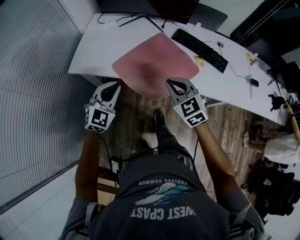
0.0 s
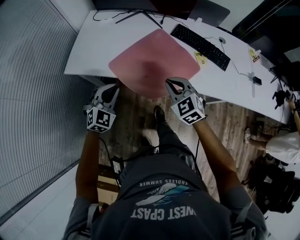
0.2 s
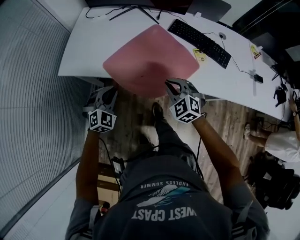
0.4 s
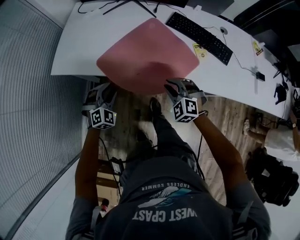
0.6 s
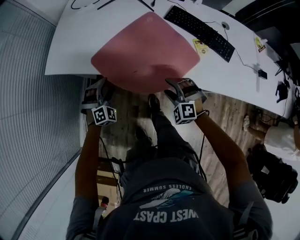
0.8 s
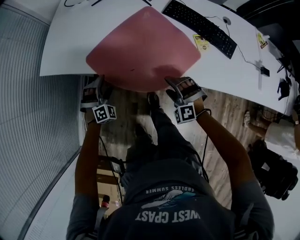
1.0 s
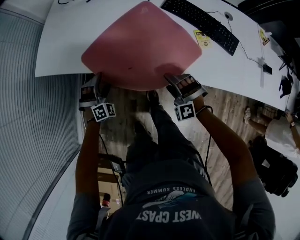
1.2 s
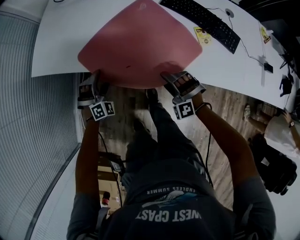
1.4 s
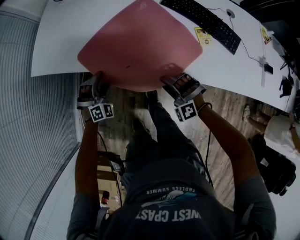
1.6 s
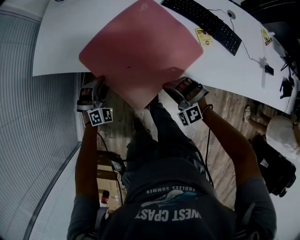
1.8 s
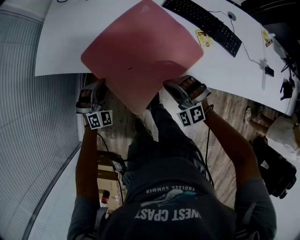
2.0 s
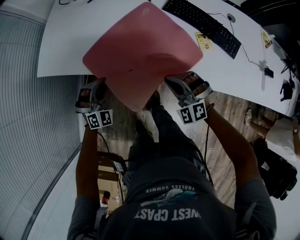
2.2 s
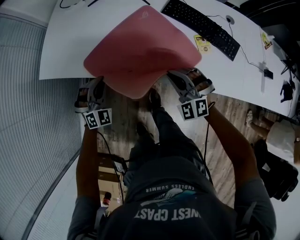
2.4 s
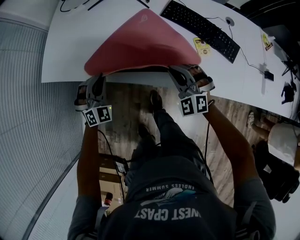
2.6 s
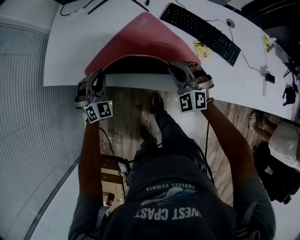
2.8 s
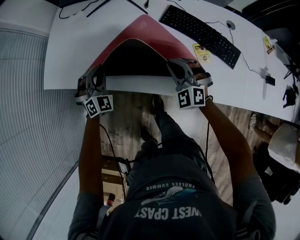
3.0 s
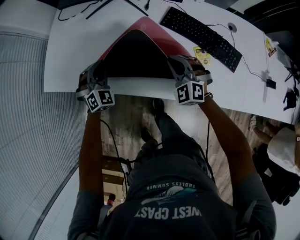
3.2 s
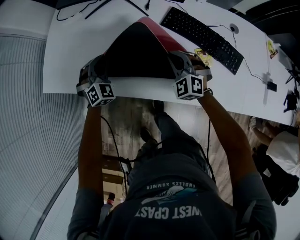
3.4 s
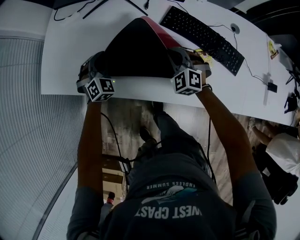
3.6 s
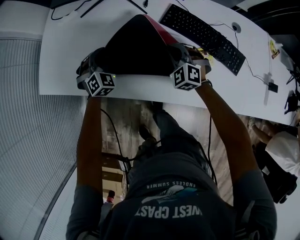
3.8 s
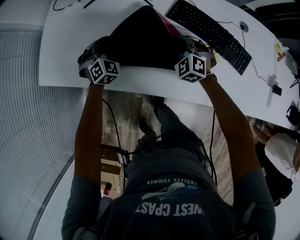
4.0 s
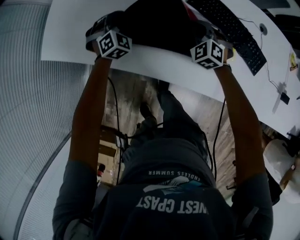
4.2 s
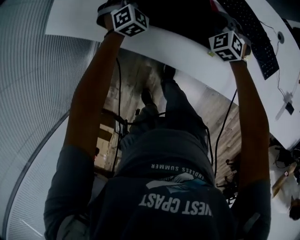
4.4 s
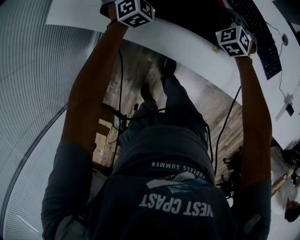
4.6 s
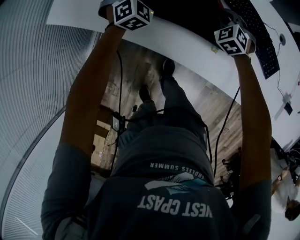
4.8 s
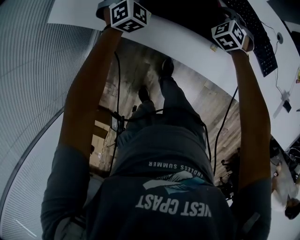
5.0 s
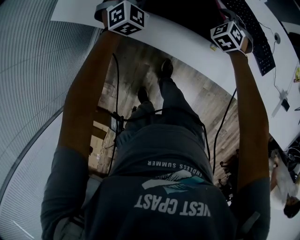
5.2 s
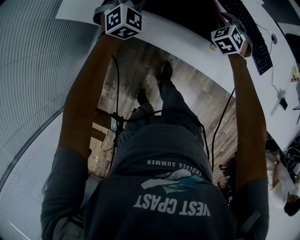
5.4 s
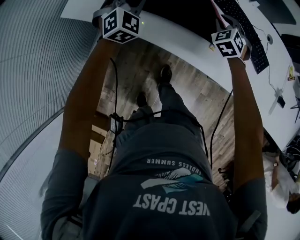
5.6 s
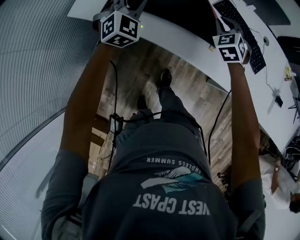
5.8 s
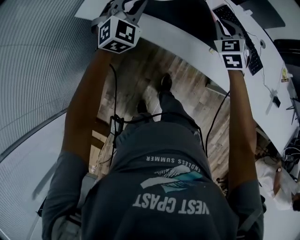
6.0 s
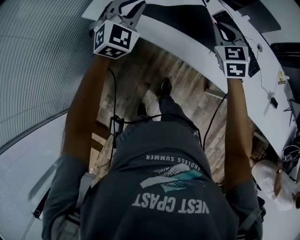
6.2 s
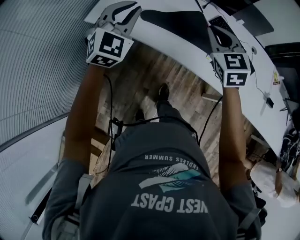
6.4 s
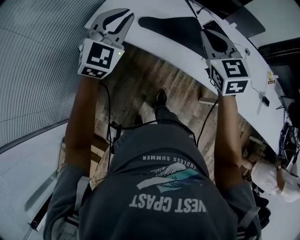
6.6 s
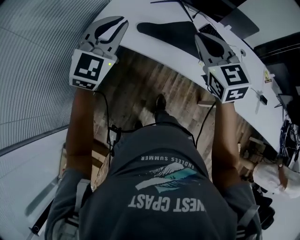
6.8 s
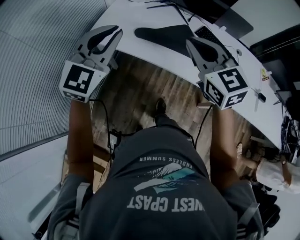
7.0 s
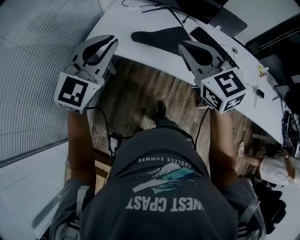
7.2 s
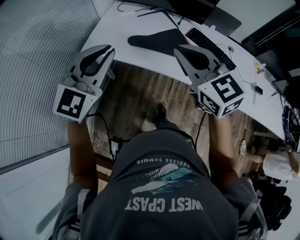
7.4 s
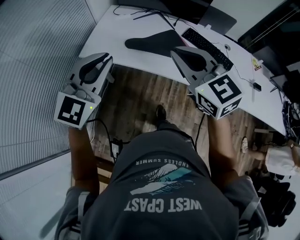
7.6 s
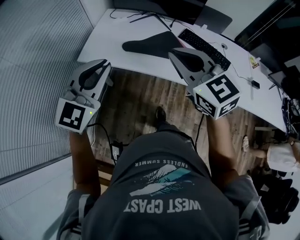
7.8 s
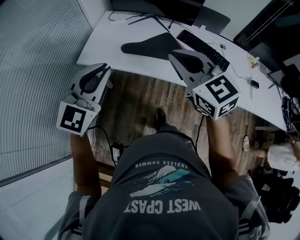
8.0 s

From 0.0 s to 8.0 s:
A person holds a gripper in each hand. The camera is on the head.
From 0.0 s to 1.6 s: Both grippers move downward, some 30 cm. The left gripper swivels approximately 40 degrees, and opens its fingers; the right gripper rolls counterclockwise, seen from behind, by roughly 60 degrees, and opens its fingers.
From 1.6 s to 3.2 s: The grippers both shift forward and upward by approximately 20 cm. The left gripper closes its fingers, while the right gripper turns by roughly 40 degrees, and closes up.
From 3.2 s to 4.8 s: The right gripper travels forward and downward by approximately 15 cm. The left gripper heads forward, covering about 10 cm.
From 4.8 s to 6.4 s: The two grippers go roughly 35 cm upward and backward. The left gripper rotates approximately 30 degrees. Meanwhile the right gripper turns by some 30 degrees.
From 6.4 s to 8.0 s: Both grippers travel together backward and upward, roughly 20 cm. The left gripper rotates some 20 degrees.

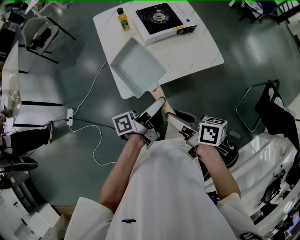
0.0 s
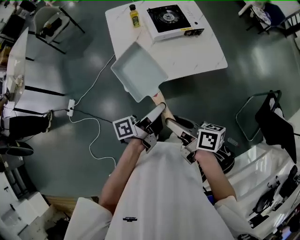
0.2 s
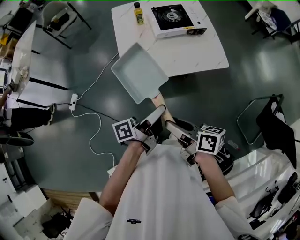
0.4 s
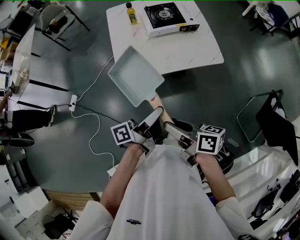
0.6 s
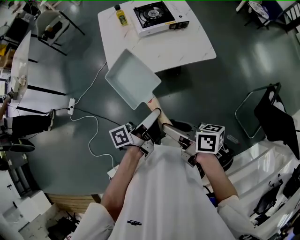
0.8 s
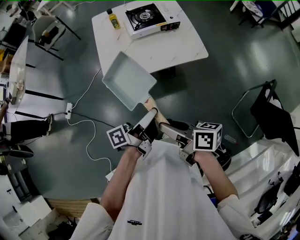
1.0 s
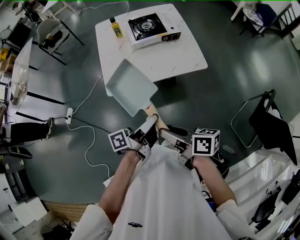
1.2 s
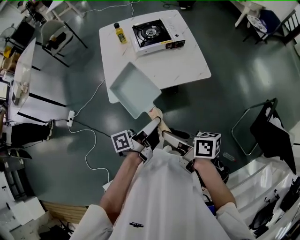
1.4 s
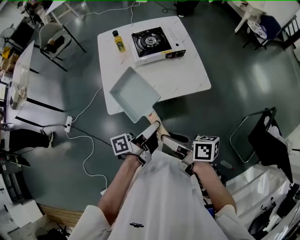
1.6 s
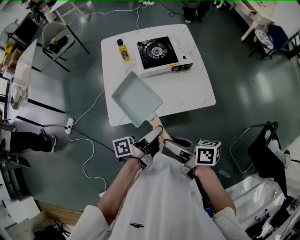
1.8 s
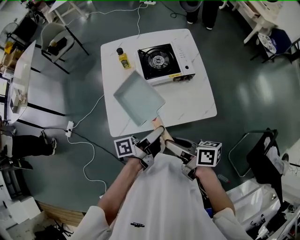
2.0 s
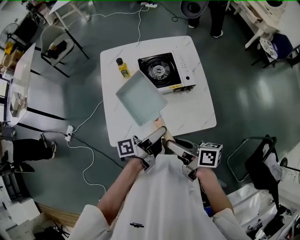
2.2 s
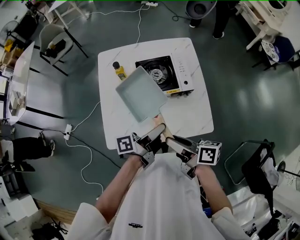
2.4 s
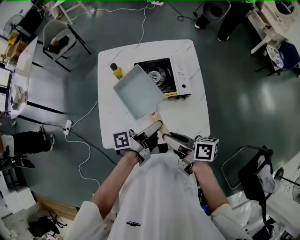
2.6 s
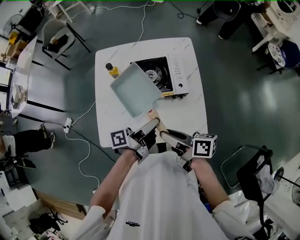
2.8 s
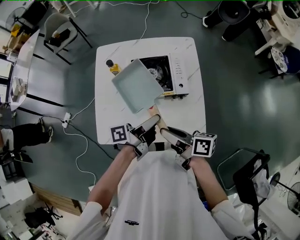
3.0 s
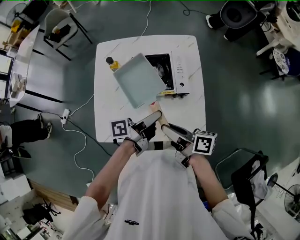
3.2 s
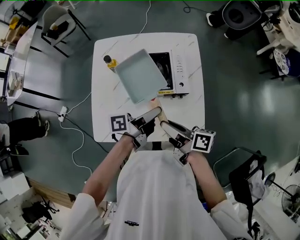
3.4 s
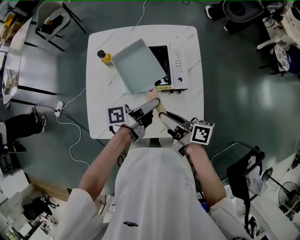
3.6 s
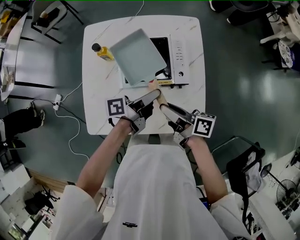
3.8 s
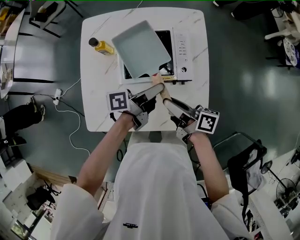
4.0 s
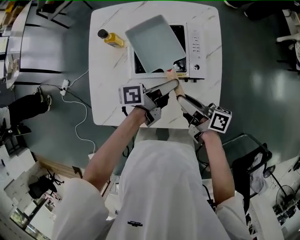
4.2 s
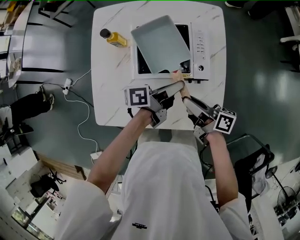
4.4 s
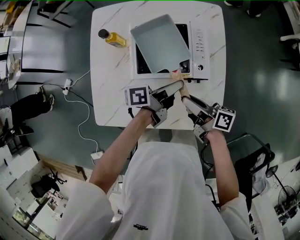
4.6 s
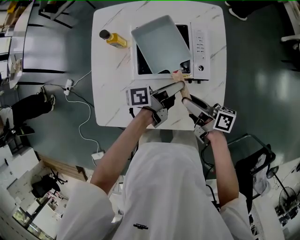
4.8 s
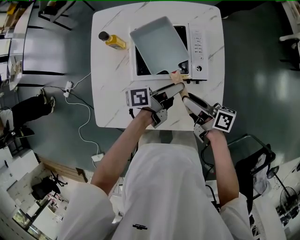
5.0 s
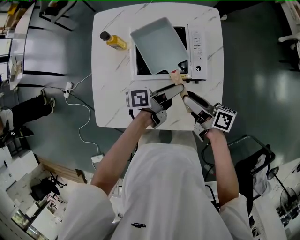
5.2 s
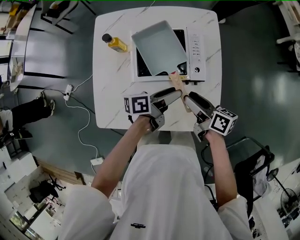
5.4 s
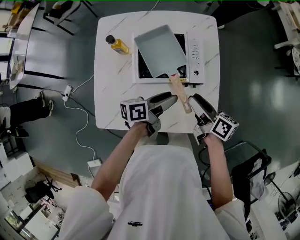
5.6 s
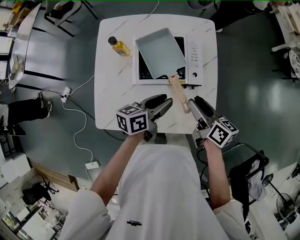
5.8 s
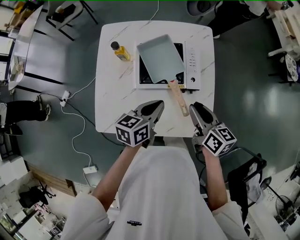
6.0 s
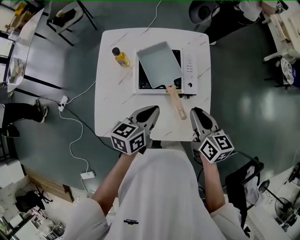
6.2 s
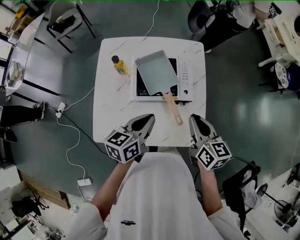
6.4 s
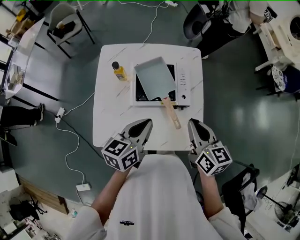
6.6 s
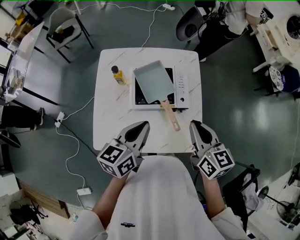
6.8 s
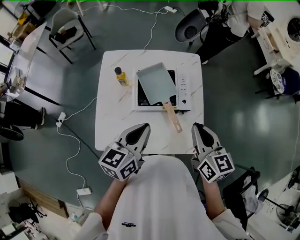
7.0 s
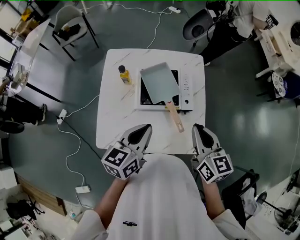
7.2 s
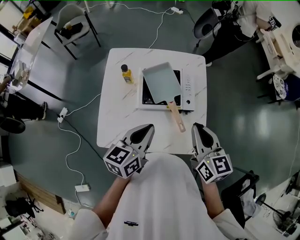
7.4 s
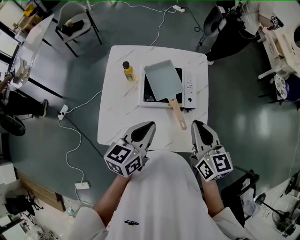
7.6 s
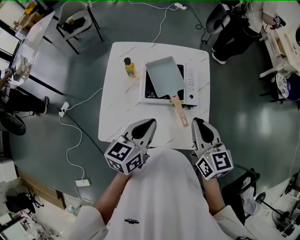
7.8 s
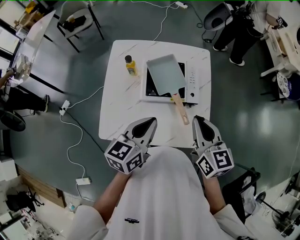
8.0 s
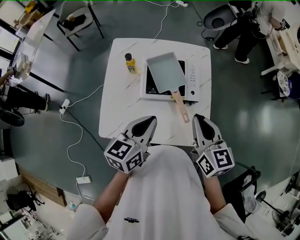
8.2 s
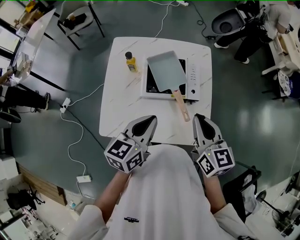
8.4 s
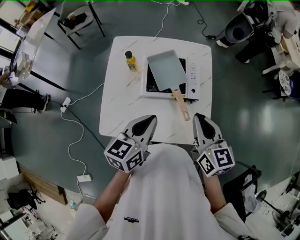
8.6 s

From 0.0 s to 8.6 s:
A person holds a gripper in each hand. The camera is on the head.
From 0.0 s to 1.4 s: The two grippers go about 15 cm to the right and backward.
From 1.4 s to 2.8 s: Both grippers travel together forward, roughly 35 cm.
From 2.8 s to 4.4 s: The left gripper is displaced forward and downward by some 15 cm, while the right gripper shifts some 15 cm downward and forward.
From 4.4 s to 5.8 s: The left gripper changes place by roughly 5 cm, rotates some 30 degrees, and opens, then closes once more. Meanwhile the right gripper moves to the right, about 5 cm, and rotates about 30 degrees.
From 5.8 s to 7.2 s: The left gripper heads upward and to the left, covering about 15 cm, turns by approximately 30 degrees, and closes up, while the right gripper shifts approximately 15 cm upward, swivels some 30 degrees, and closes its fingers.
From 7.2 s to 8.6 s: The grippers stay close to where they were, moving slightly.

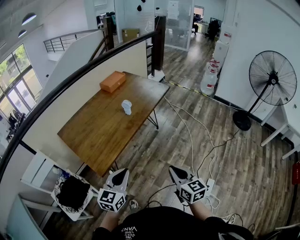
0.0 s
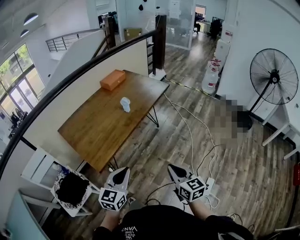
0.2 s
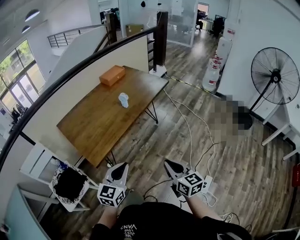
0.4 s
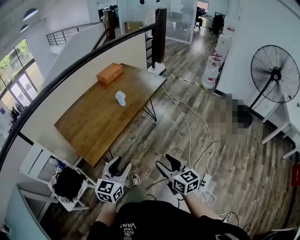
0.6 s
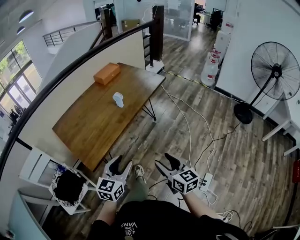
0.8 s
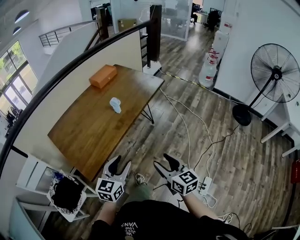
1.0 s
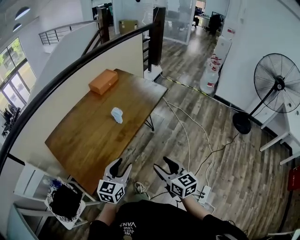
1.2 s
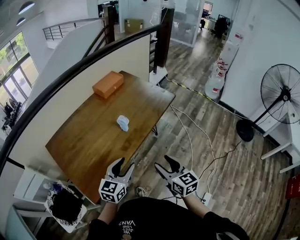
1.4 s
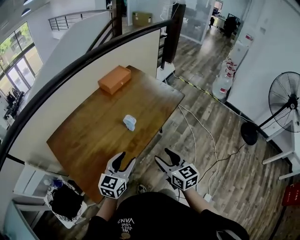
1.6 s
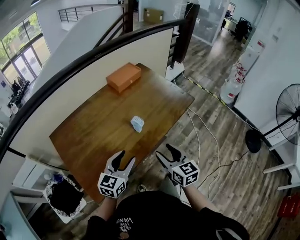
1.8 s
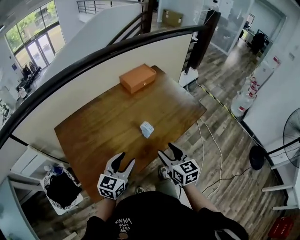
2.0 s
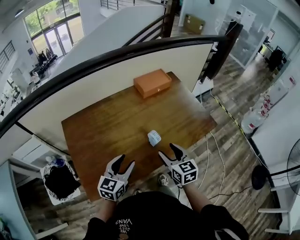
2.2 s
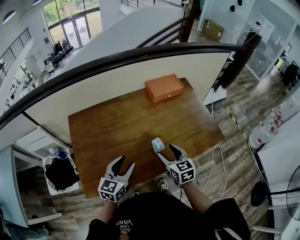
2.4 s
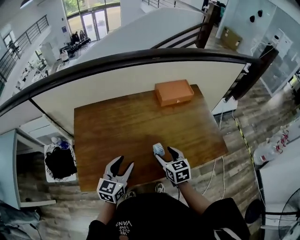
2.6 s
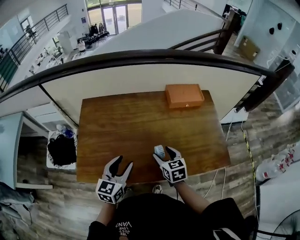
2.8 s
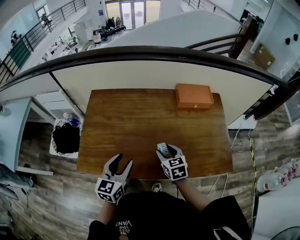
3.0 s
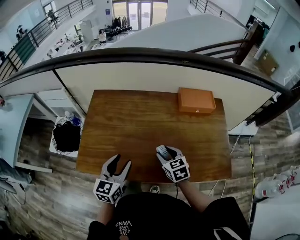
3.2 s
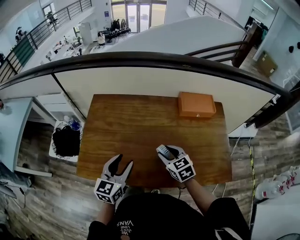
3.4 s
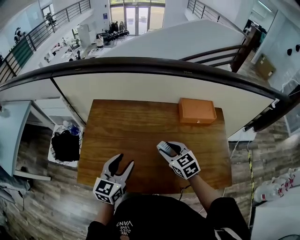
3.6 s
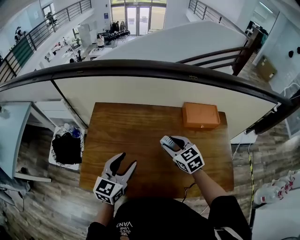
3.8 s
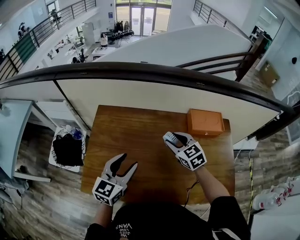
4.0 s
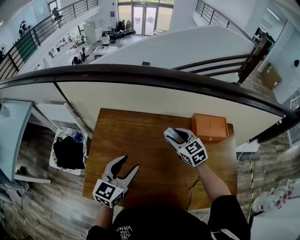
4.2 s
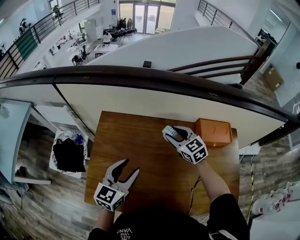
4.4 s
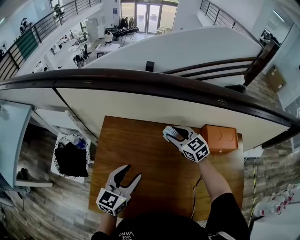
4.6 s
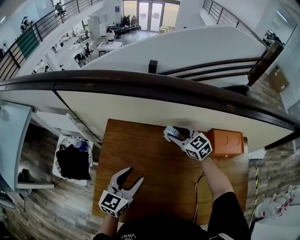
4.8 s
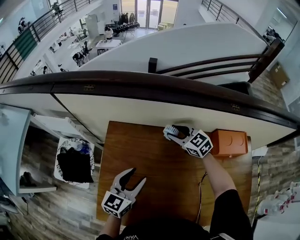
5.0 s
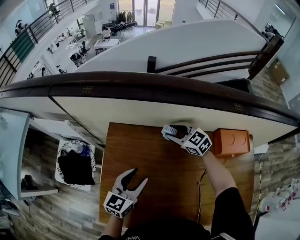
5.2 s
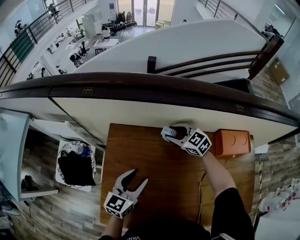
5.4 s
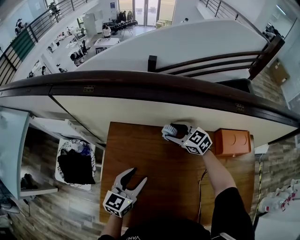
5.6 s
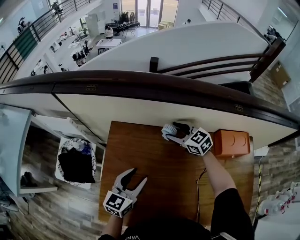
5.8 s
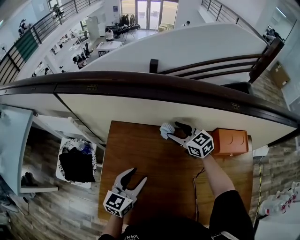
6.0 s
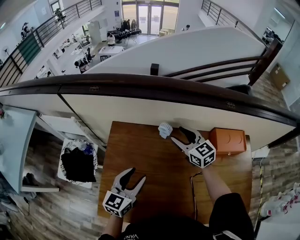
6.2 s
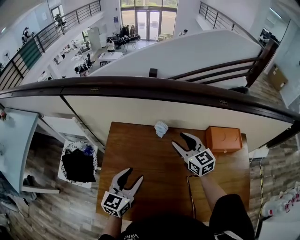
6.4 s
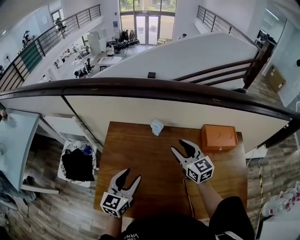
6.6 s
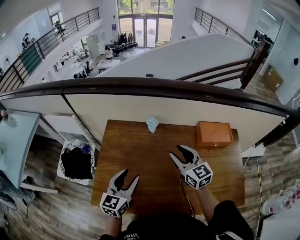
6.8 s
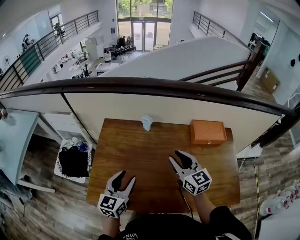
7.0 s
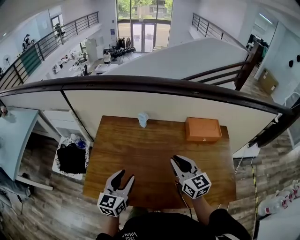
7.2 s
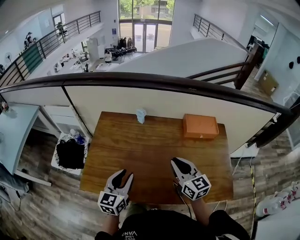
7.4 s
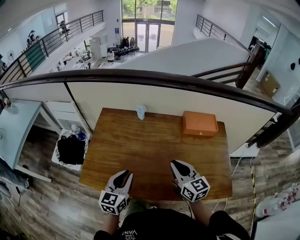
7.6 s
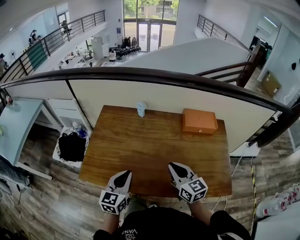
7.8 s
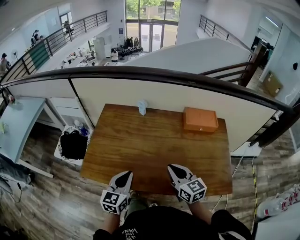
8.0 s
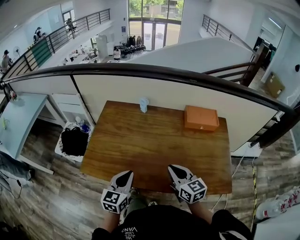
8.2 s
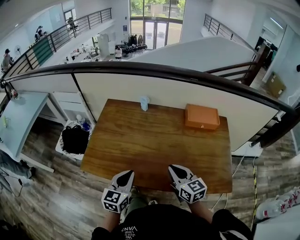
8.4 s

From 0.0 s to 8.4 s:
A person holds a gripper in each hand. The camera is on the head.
From 0.0 s to 1.4 s: The grippers both shift forward by about 25 cm. The right gripper opens. The left gripper opens its fingers.
From 1.4 s to 2.8 s: The right gripper shifts by approximately 35 cm, and rotates about 50 degrees. The left gripper moves approximately 20 cm, and changes its angle by some 50 degrees.
From 2.8 s to 4.2 s: The right gripper moves forward, approximately 25 cm, and swivels approximately 30 degrees. The left gripper goes some 15 cm forward and upward.
From 4.2 s to 5.6 s: The left gripper goes about 15 cm forward, downward and to the left; the right gripper goes about 20 cm forward, to the left and downward.
From 5.6 s to 7.0 s: The left gripper heads backward, covering about 15 cm, while the right gripper is displaced backward and upward by some 30 cm, and changes its angle by approximately 30 degrees.
From 7.0 s to 8.4 s: The left gripper is displaced backward and to the right by approximately 15 cm, and closes up. The right gripper is displaced backward by some 20 cm, and closes up.
